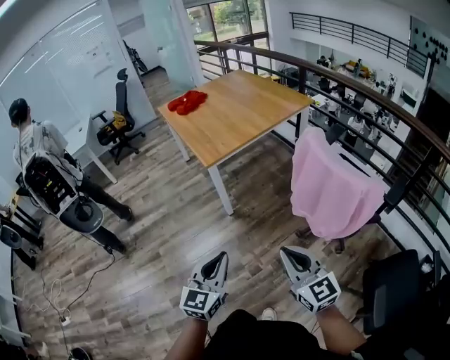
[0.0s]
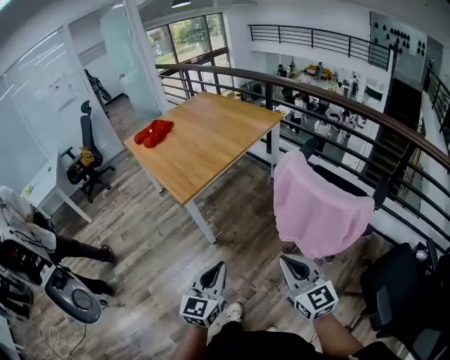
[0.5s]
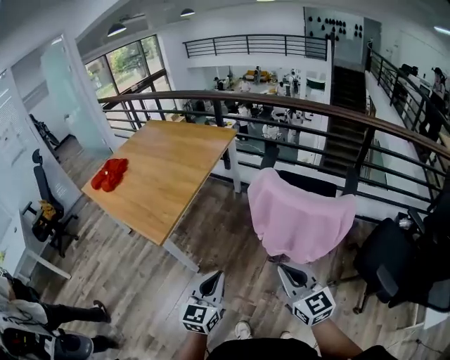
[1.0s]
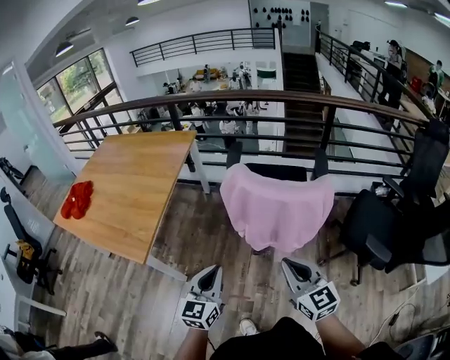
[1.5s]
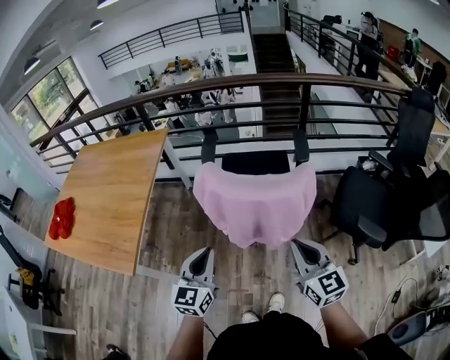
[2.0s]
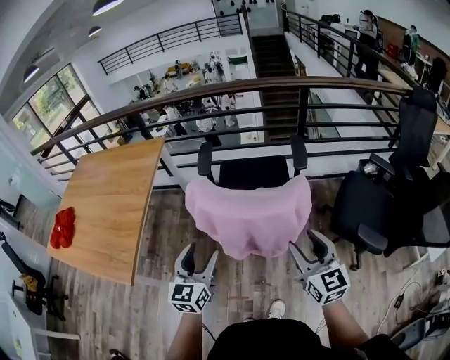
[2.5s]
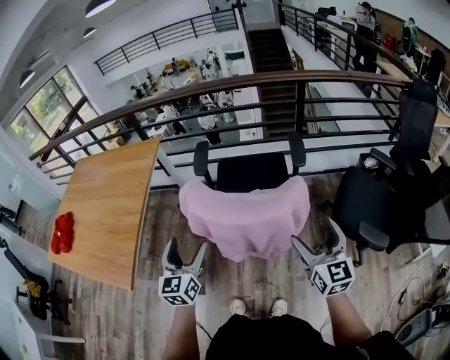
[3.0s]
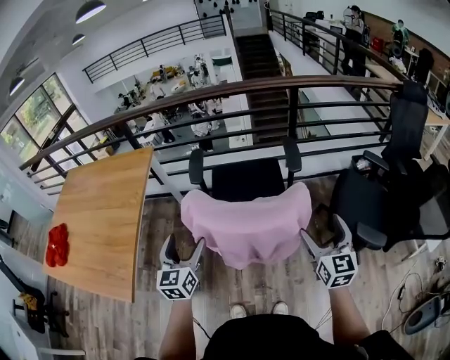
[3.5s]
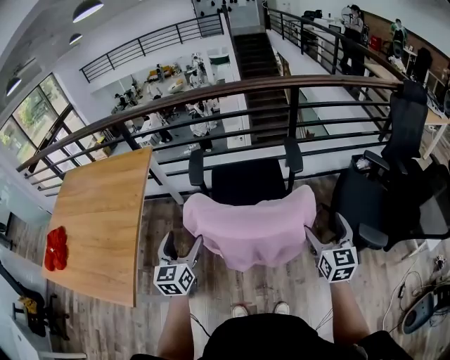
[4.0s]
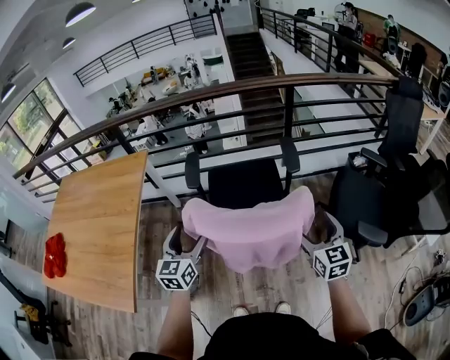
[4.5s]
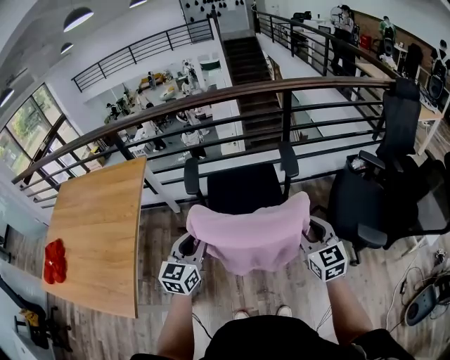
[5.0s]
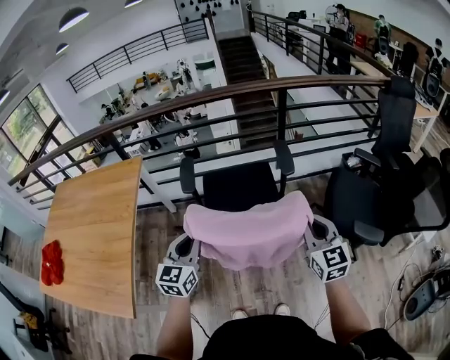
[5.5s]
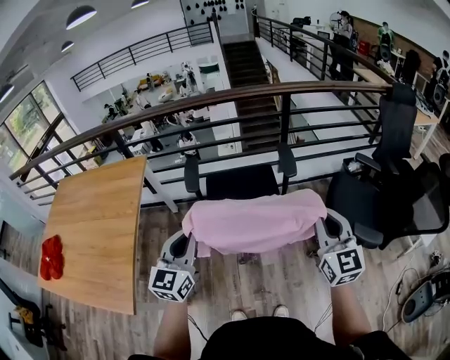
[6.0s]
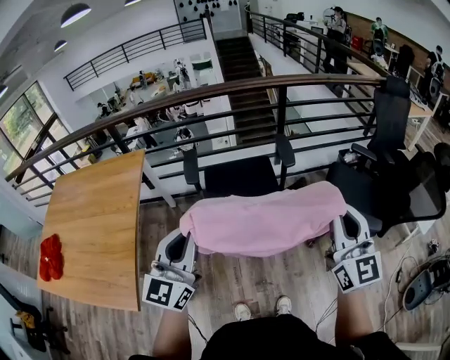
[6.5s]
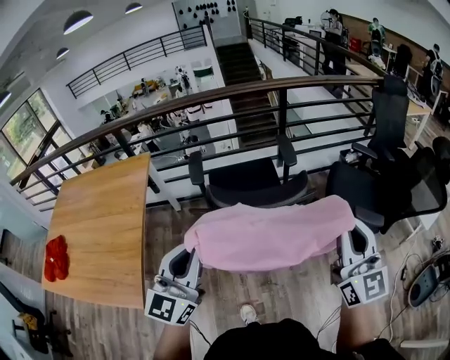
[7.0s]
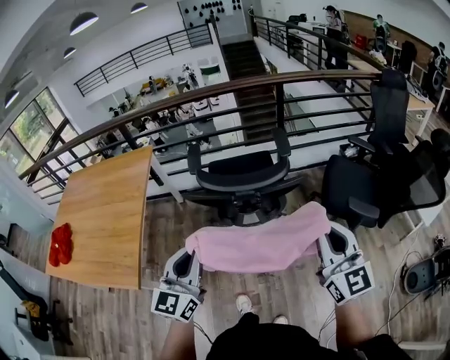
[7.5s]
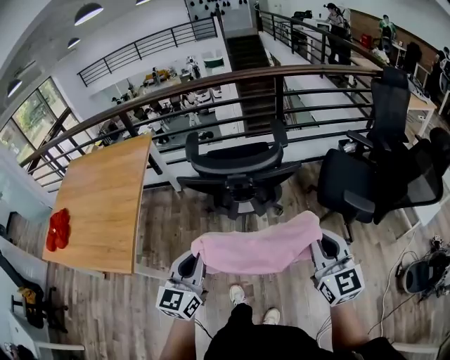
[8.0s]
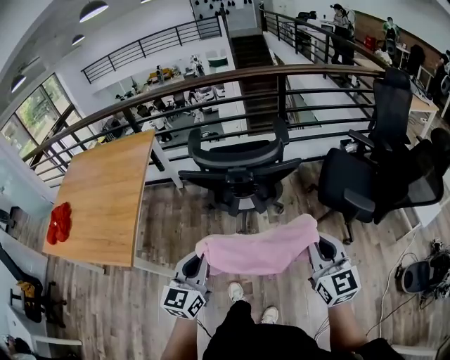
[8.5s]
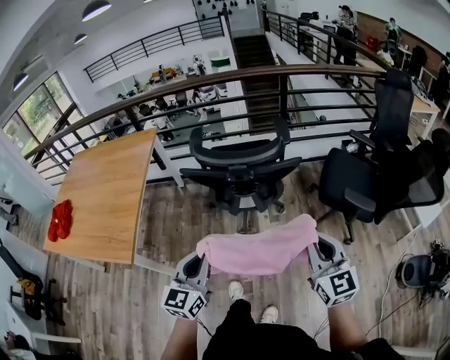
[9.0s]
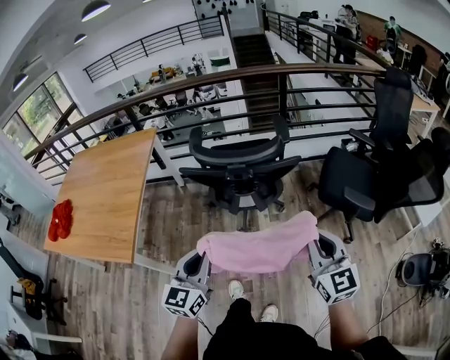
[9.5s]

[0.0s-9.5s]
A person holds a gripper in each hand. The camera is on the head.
0.0s to 2.0s: The right gripper shifts by some 15 cm, and turns by about 60 degrees; the left gripper ends up about 30 cm from where it was, and rotates approximately 50 degrees.
2.0s to 4.0s: The right gripper is displaced forward and to the right by about 20 cm, turns by roughly 20 degrees, and opens its fingers; the left gripper moves forward, roughly 20 cm, and opens.
4.0s to 5.5s: The left gripper is displaced to the right by roughly 5 cm, and closes. The right gripper ends up approximately 5 cm from where it was, and closes its fingers.
5.5s to 7.5s: The right gripper shifts about 25 cm backward and upward. The left gripper travels backward by approximately 25 cm.
7.5s to 9.5s: Both grippers travel together downward and backward, roughly 10 cm.

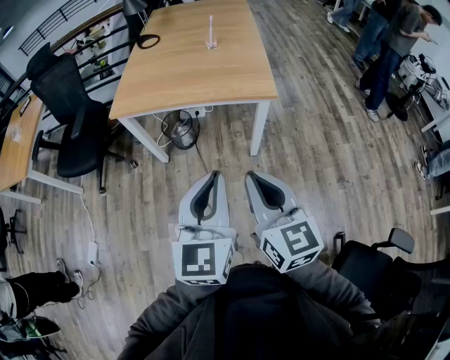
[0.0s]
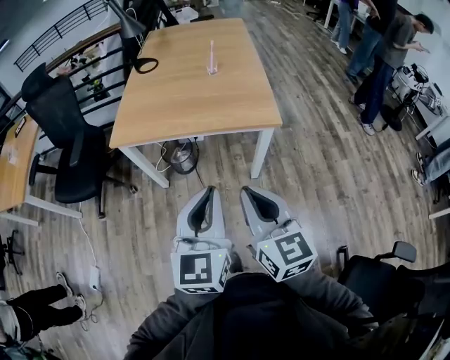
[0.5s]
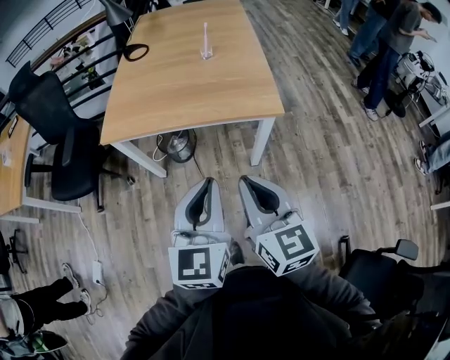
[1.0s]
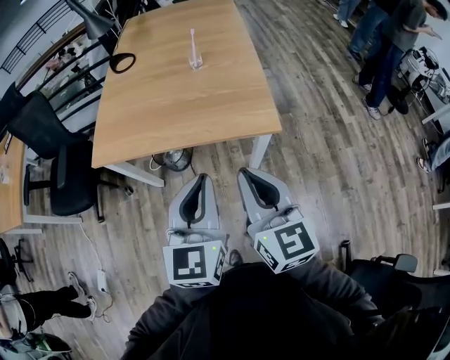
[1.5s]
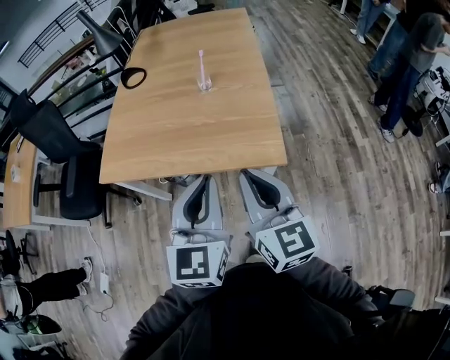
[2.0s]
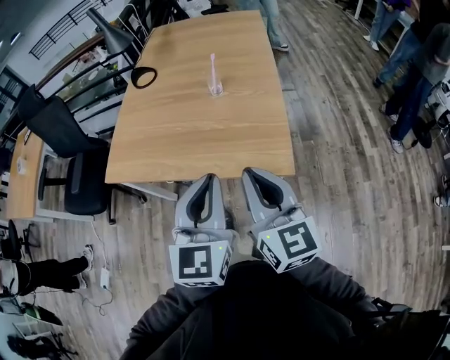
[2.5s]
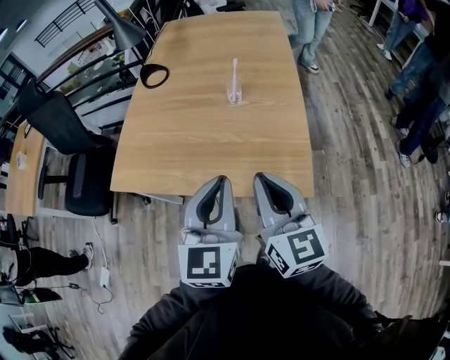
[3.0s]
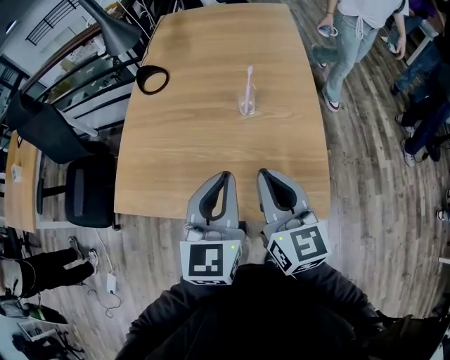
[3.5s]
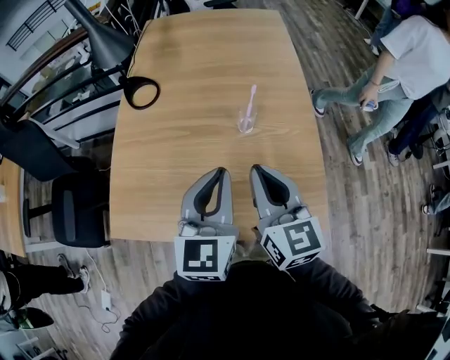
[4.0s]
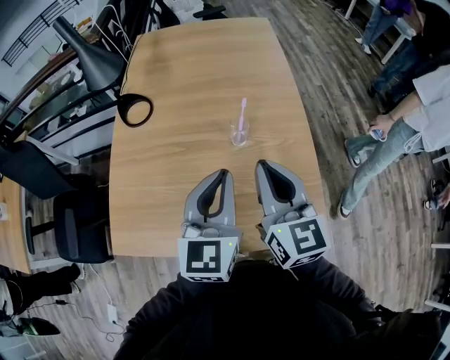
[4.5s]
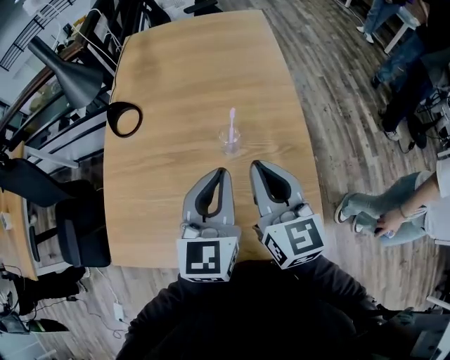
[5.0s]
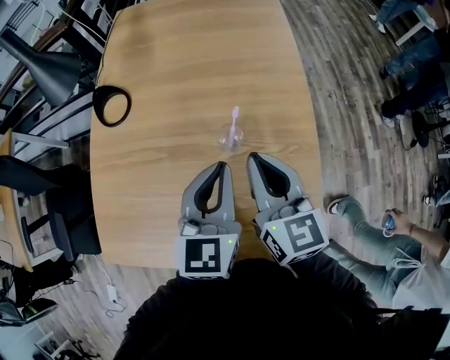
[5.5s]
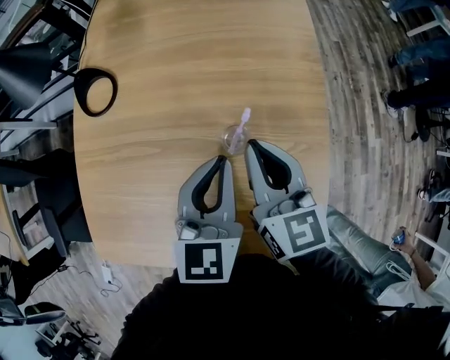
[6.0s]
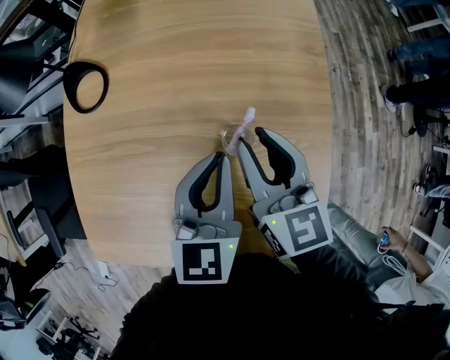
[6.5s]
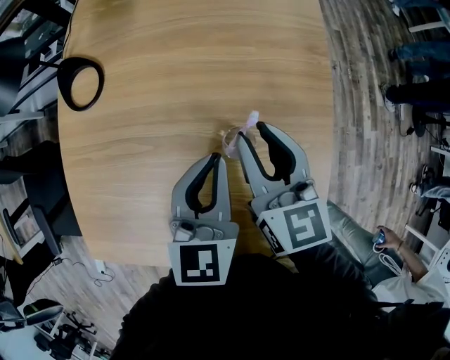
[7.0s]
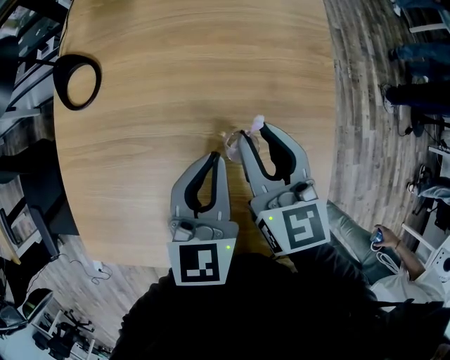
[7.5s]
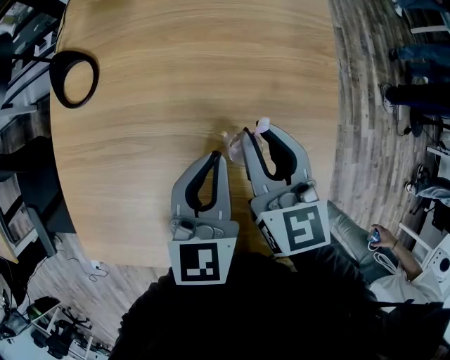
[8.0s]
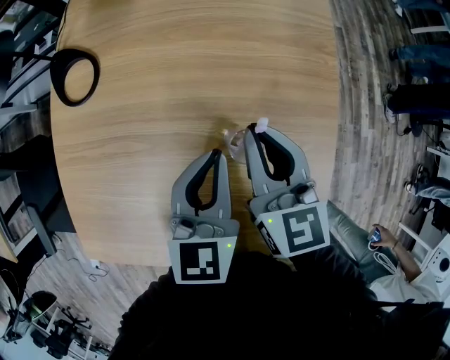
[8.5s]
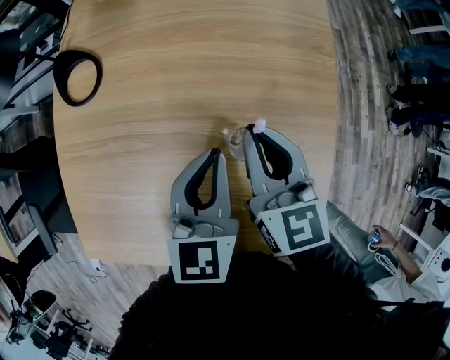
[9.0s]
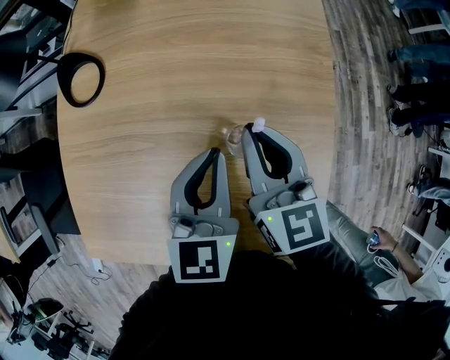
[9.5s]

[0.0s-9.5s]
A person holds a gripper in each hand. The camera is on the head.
0.0s to 2.0s: The grippers both shift forward by some 30 cm.
2.0s to 4.0s: Both grippers move forward, roughly 30 cm.
4.0s to 5.5s: Both grippers travel together forward and to the right, some 15 cm.
5.5s to 7.5s: The left gripper heads downward and forward, covering some 10 cm, while the right gripper shifts approximately 10 cm forward and downward, and opens up.
7.5s to 9.5s: The right gripper closes.

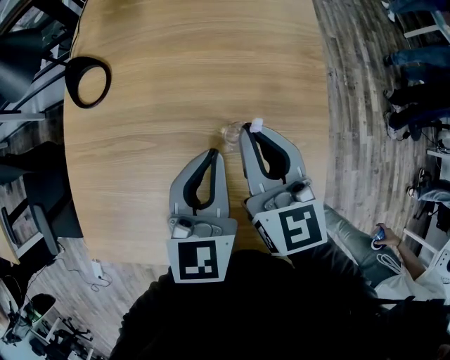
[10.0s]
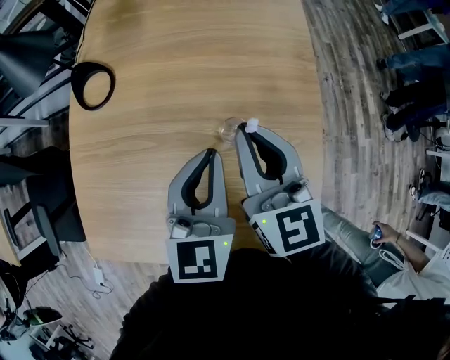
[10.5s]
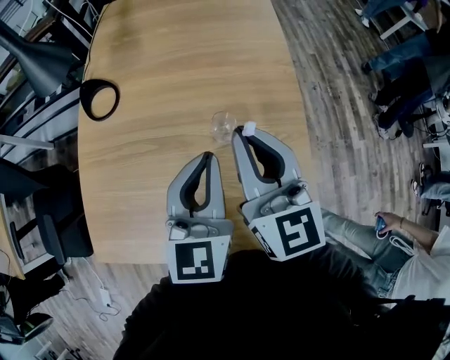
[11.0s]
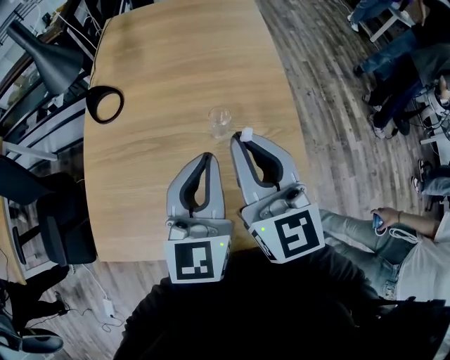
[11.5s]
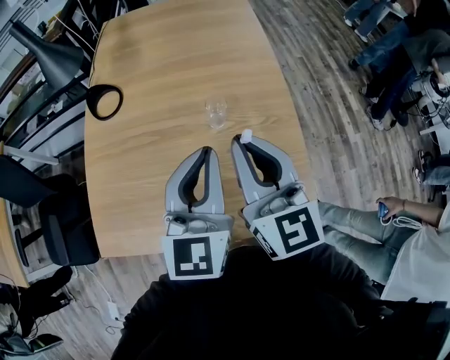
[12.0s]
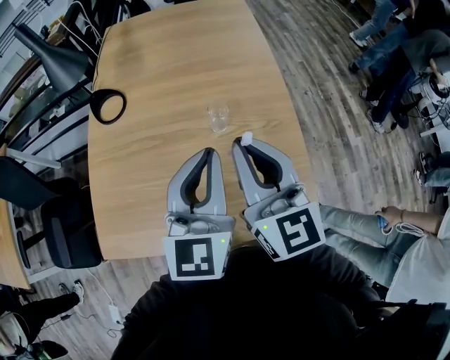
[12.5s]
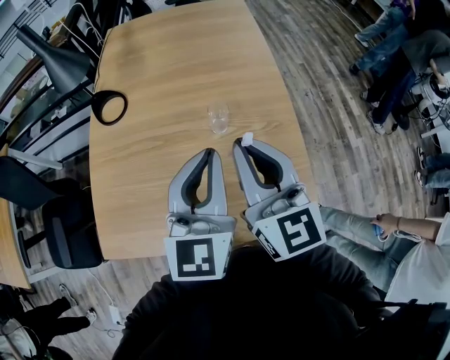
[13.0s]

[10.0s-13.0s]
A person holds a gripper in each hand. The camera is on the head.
10.0s to 11.5s: Both grippers travel together backward and upward, approximately 15 cm.
11.5s to 13.0s: The grippers stay close to where they were, moving slightly.

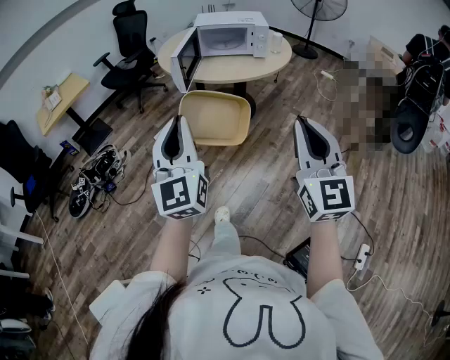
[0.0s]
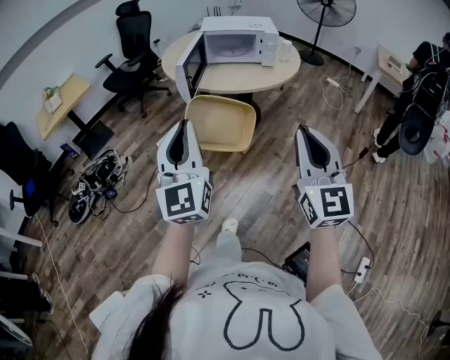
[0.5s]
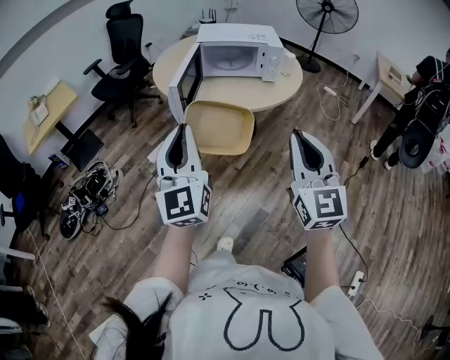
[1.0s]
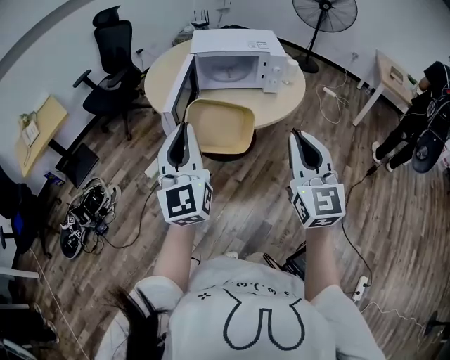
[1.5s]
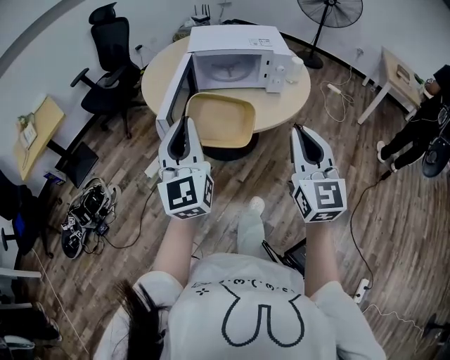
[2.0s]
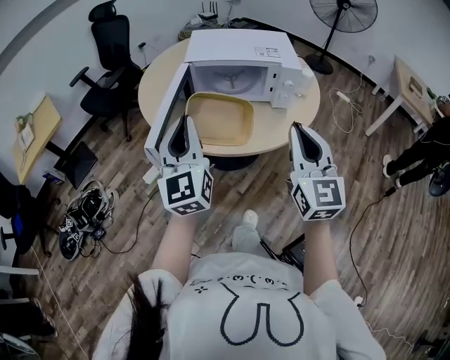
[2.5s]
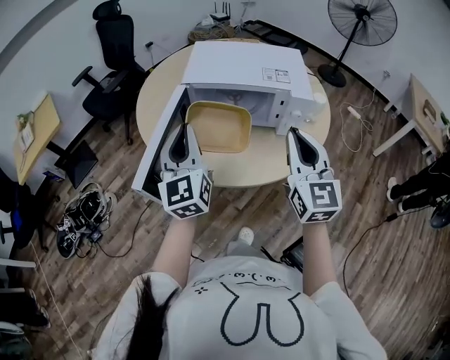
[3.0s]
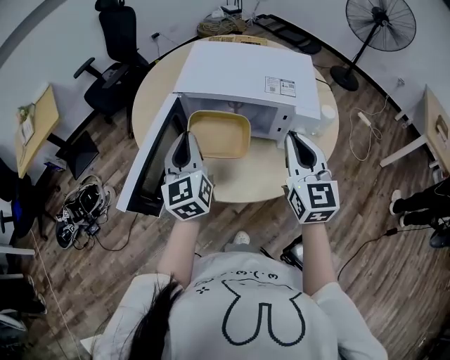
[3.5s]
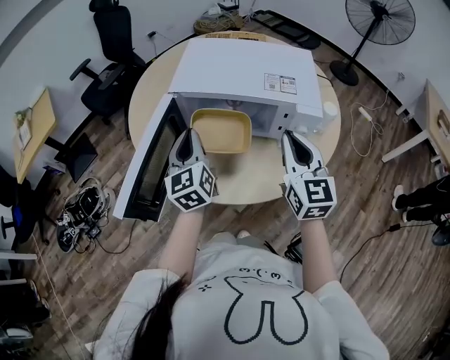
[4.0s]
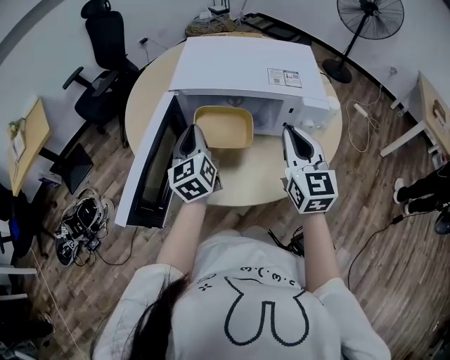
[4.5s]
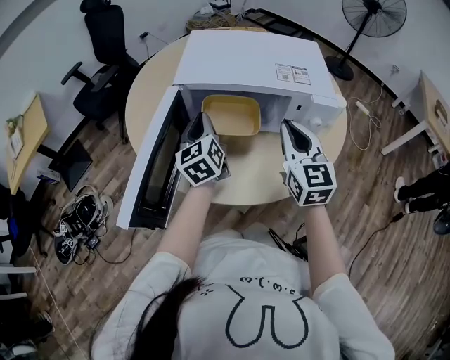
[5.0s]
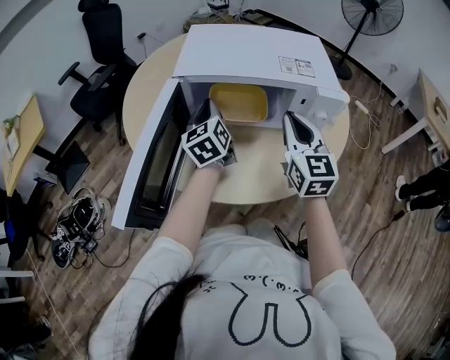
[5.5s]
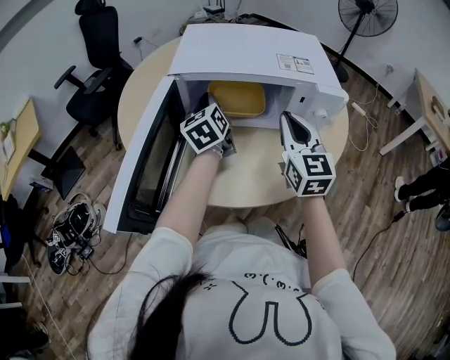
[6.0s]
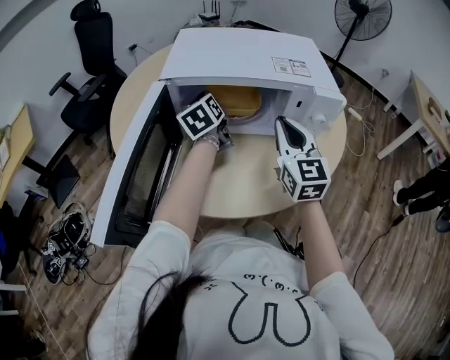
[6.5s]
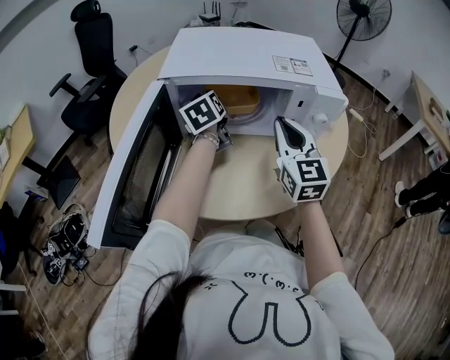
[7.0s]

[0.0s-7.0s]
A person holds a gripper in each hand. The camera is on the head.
0.0s to 2.0s: The pair of grippers is taken forward, about 40 cm.
2.0s to 3.5s: Both grippers travel together forward, roughly 35 cm. The left gripper turns by approximately 20 degrees.
3.5s to 5.0s: The left gripper travels forward and downward by about 15 cm; the right gripper heads downward and forward, covering approximately 10 cm.
5.0s to 7.0s: The left gripper is displaced forward and downward by some 15 cm. The right gripper goes approximately 5 cm downward.
